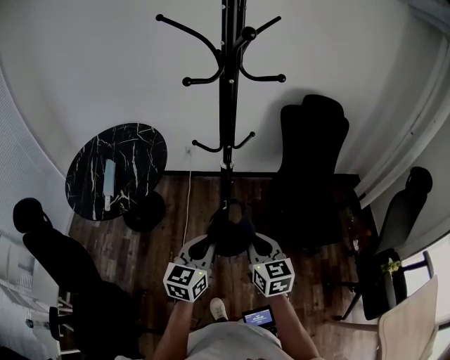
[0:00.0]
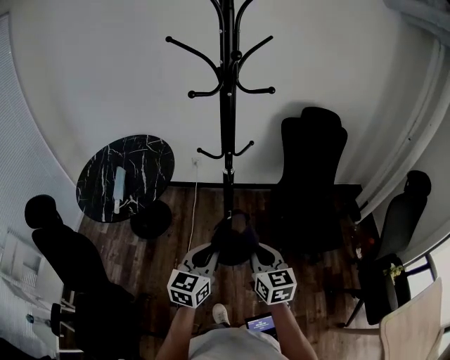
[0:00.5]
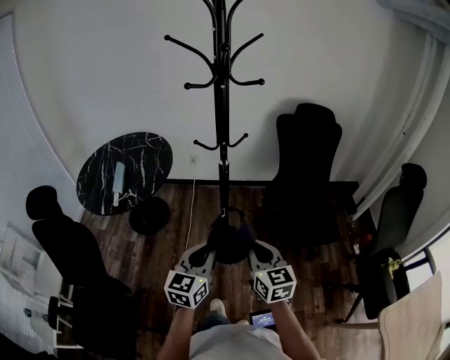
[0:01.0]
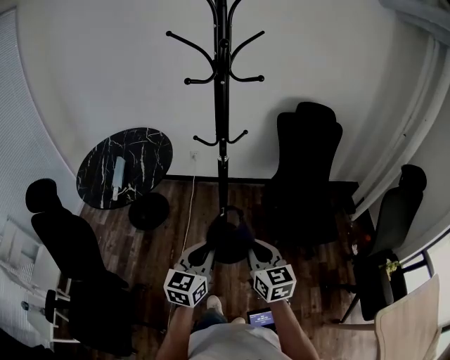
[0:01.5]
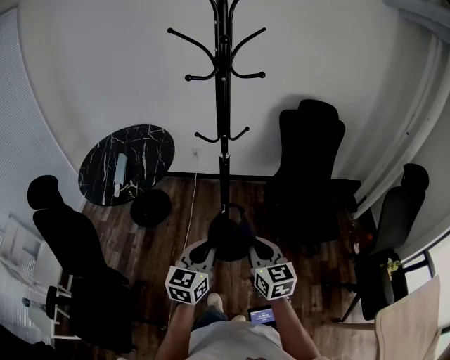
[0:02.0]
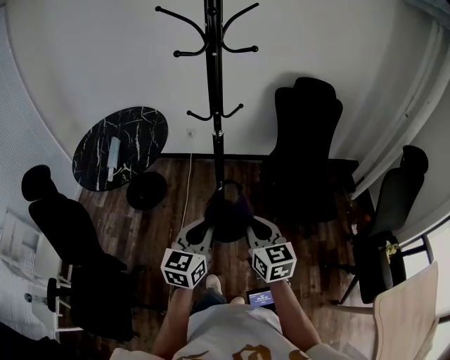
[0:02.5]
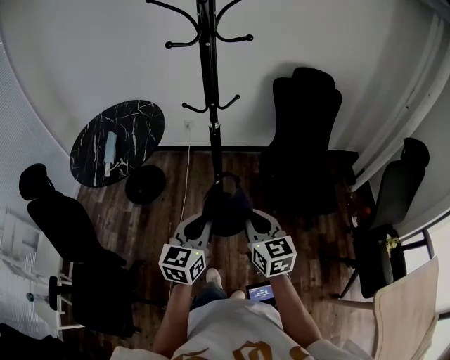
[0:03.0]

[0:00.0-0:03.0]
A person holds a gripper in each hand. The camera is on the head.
0:00.0 to 0:01.5: Both grippers travel together backward, roughly 10 cm.
0:01.5 to 0:03.0: The grippers stay close to where they were, moving slightly.

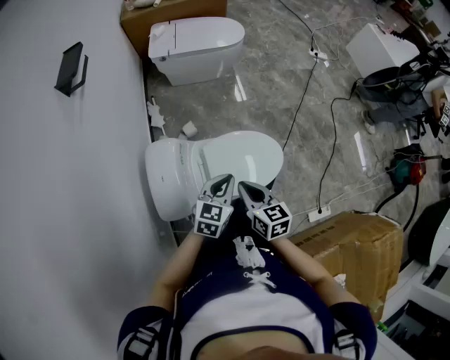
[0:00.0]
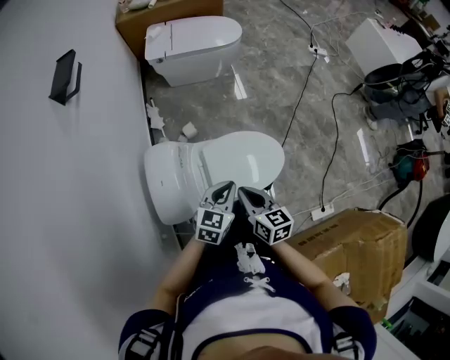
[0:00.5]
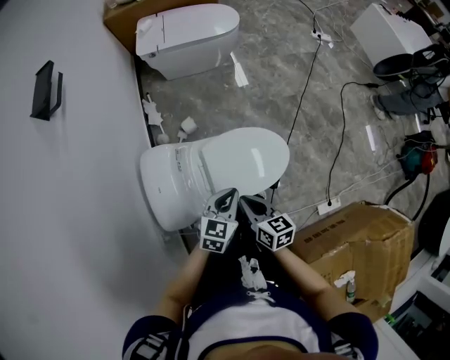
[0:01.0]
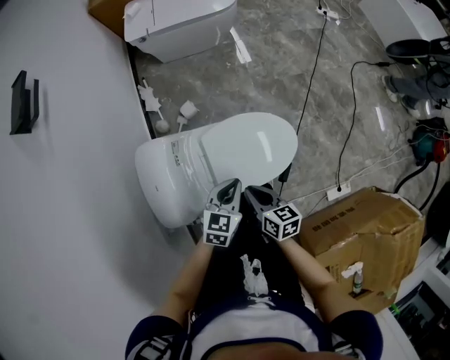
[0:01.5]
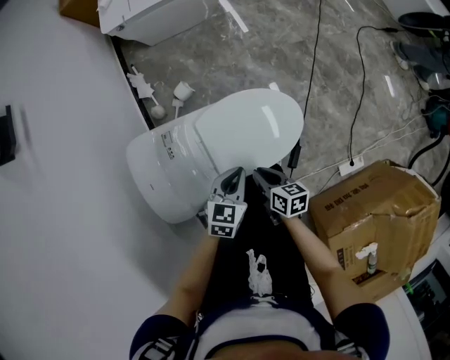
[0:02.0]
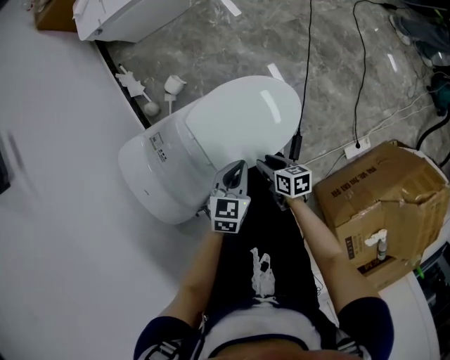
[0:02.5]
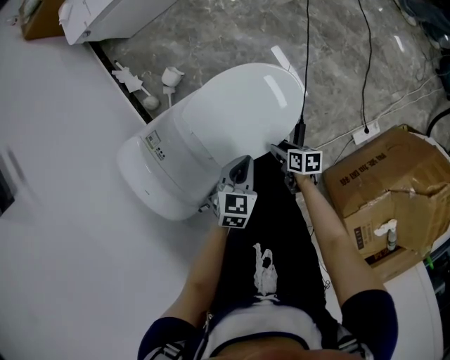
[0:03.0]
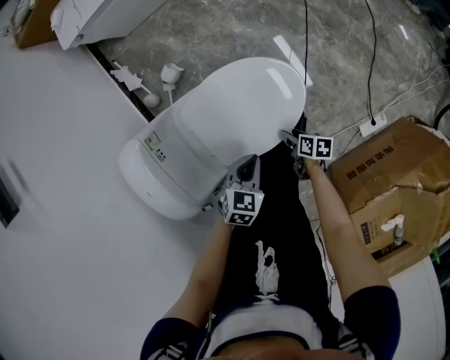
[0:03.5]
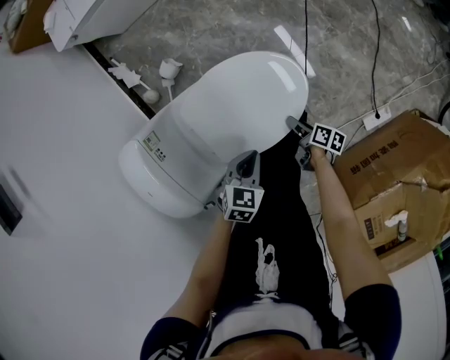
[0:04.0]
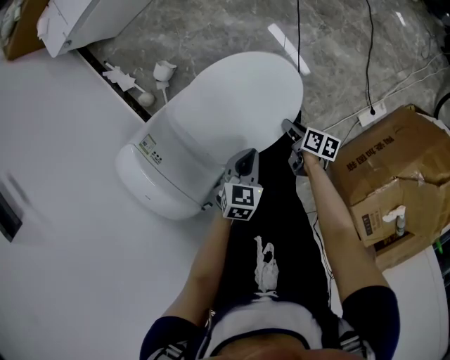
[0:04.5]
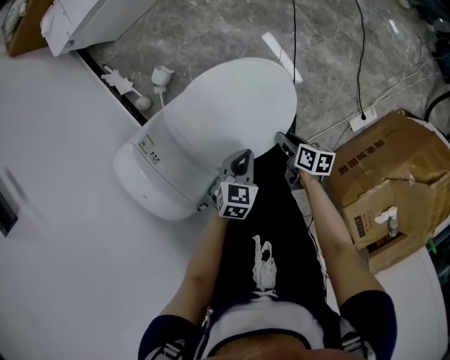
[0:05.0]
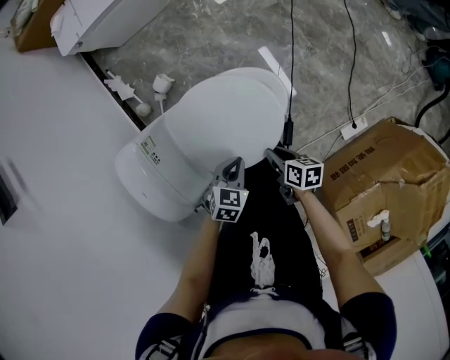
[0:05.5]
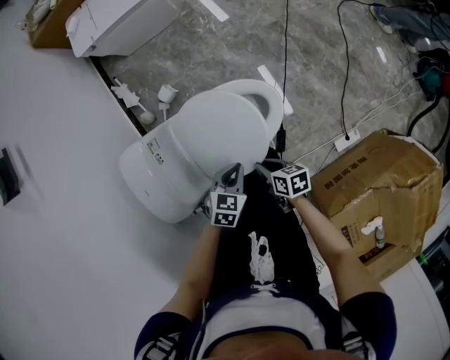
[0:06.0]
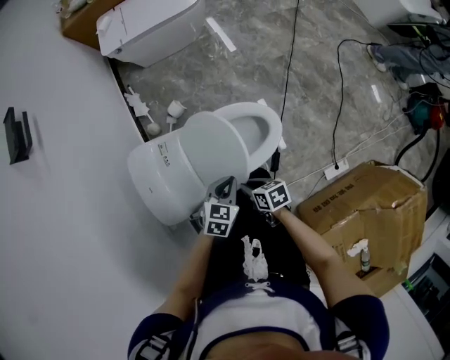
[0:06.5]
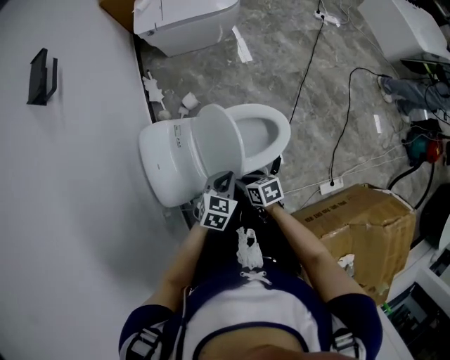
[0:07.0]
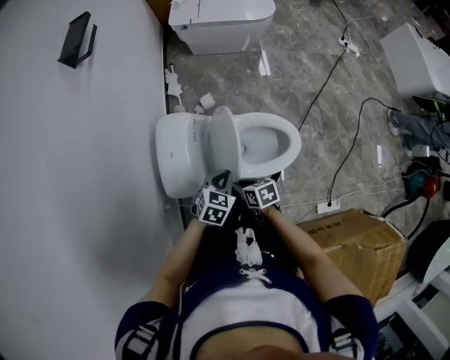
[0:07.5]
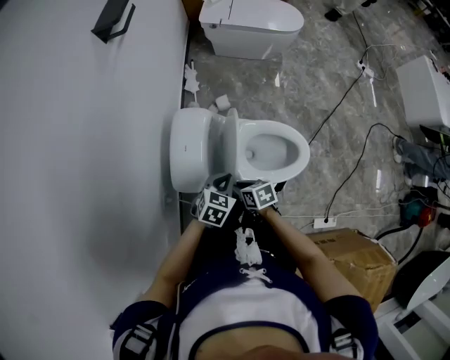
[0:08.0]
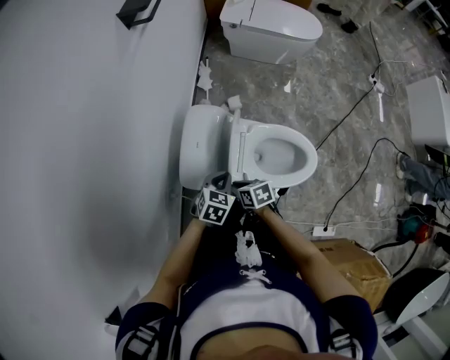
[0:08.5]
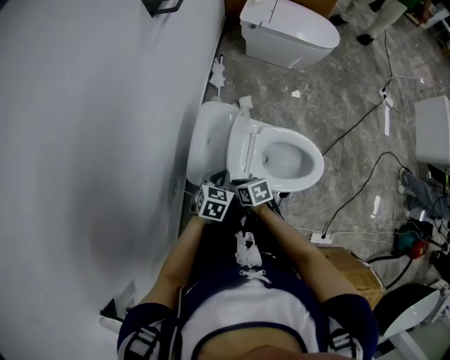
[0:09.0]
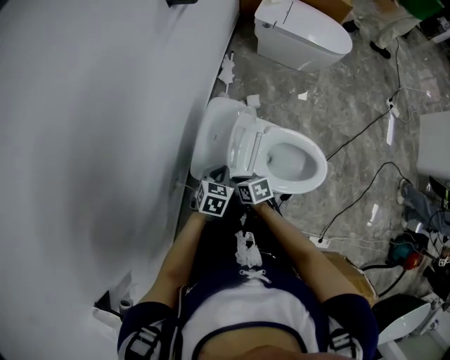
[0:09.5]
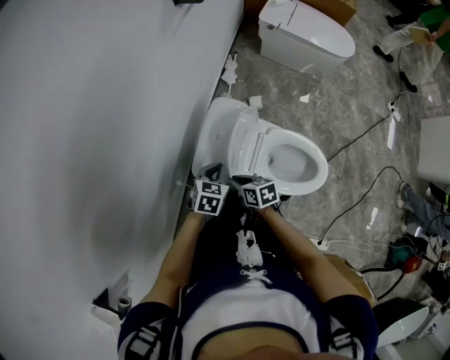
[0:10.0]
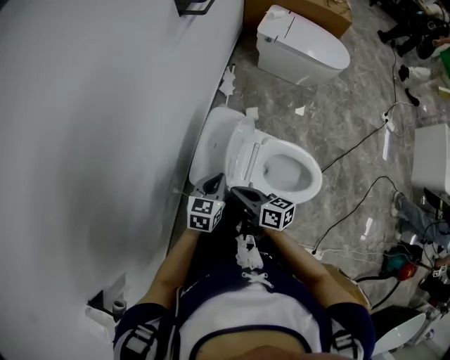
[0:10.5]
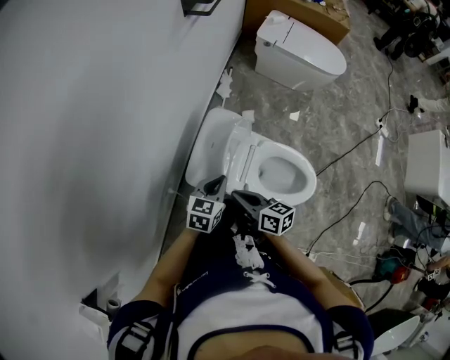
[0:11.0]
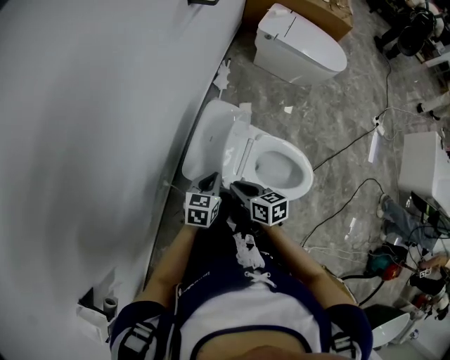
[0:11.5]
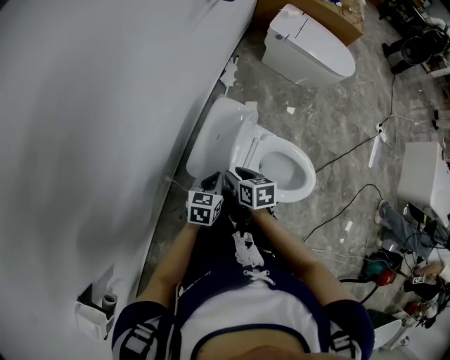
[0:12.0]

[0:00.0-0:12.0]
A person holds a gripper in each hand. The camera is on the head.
0:00.0 to 0:02.0: The two grippers go roughly 20 cm downward. The right gripper changes its angle by some 30 degrees.
0:02.0 to 0:04.0: The right gripper goes some 25 cm downward and to the right, rolls clockwise, seen from behind, by approximately 40 degrees, and opens. Meanwhile the left gripper heads downward and to the right, covering about 15 cm, and swivels about 20 degrees.
0:04.0 to 0:06.0: The right gripper goes roughly 20 cm upward and to the left, changes its angle by approximately 40 degrees, and closes up; the left gripper heads upward, covering roughly 10 cm.
0:06.0 to 0:08.0: The left gripper changes place by some 20 cm, and rotates some 20 degrees; the right gripper changes place by some 25 cm, and swivels roughly 40 degrees.
0:08.0 to 0:10.0: The grippers both shift to the left and forward by approximately 10 cm. The left gripper turns by approximately 20 degrees.

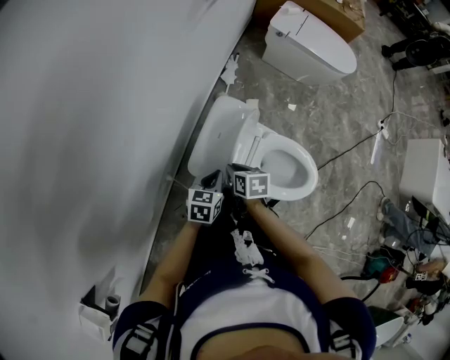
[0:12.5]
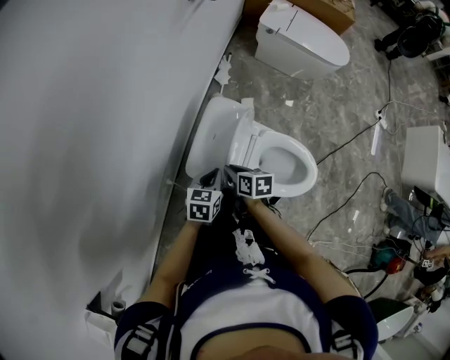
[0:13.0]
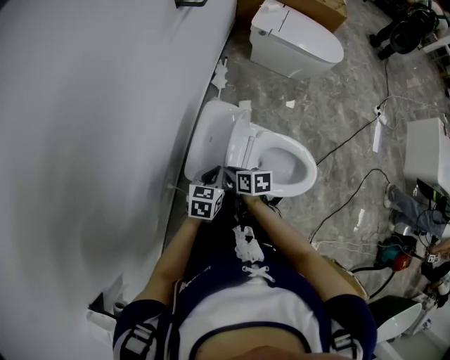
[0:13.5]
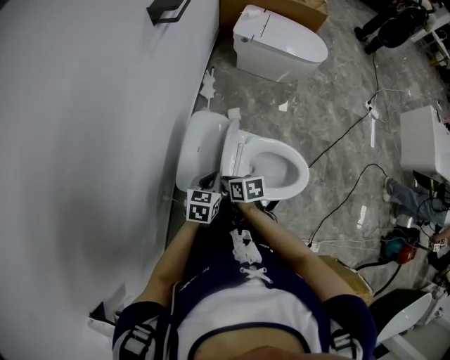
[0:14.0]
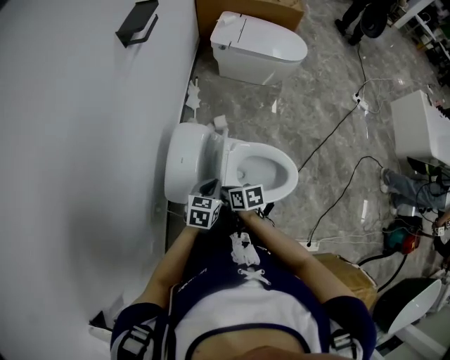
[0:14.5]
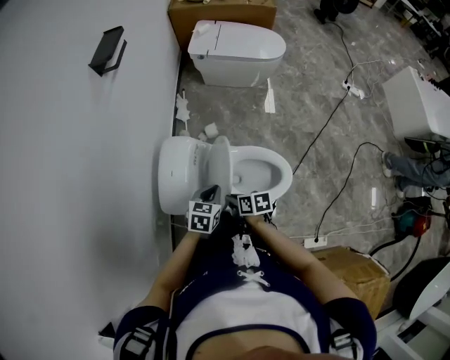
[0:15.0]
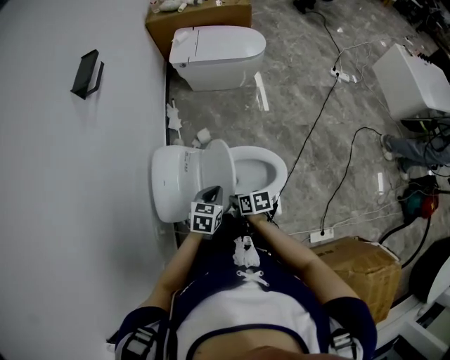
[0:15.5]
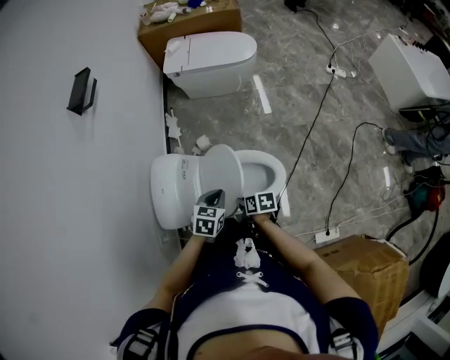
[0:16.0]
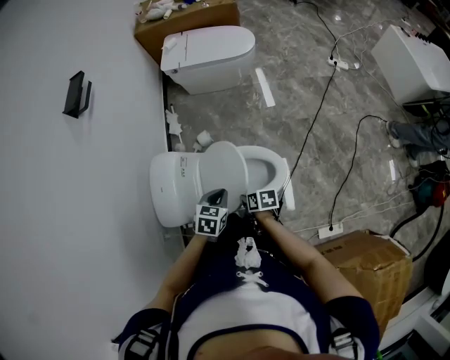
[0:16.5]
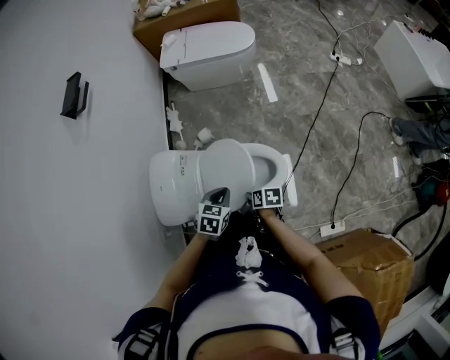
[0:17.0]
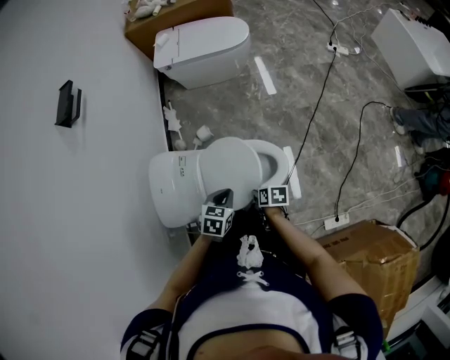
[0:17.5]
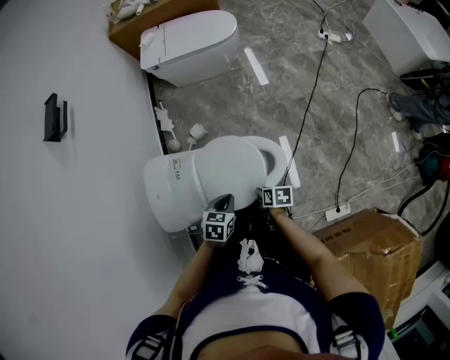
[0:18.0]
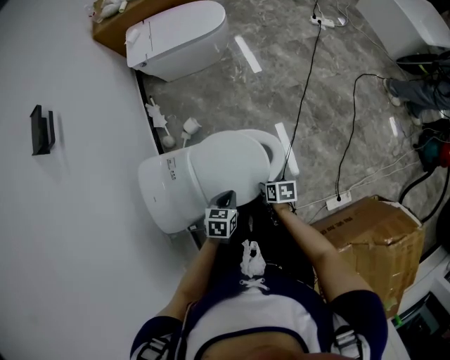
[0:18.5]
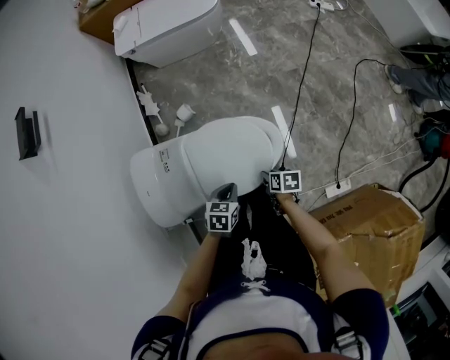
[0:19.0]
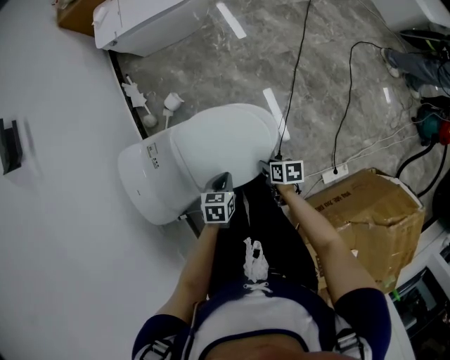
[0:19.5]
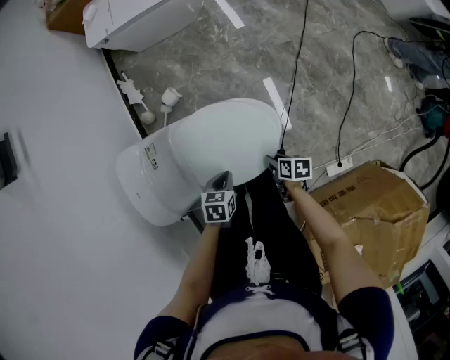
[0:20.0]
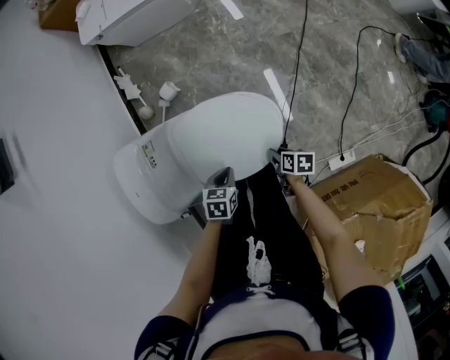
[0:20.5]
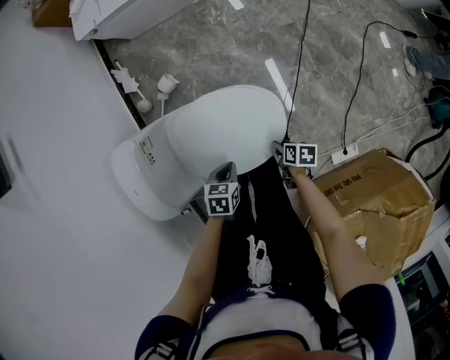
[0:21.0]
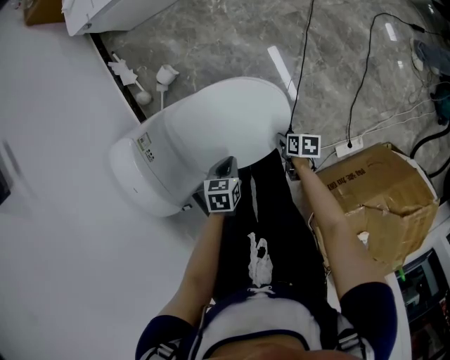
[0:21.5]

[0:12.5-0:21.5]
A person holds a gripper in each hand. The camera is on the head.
0:12.5 to 0:14.5: The right gripper is displaced to the right and backward by approximately 10 cm. The left gripper goes some 15 cm to the right.
0:14.5 to 0:17.0: Both grippers move to the right, about 20 cm. The right gripper changes its angle by some 30 degrees.
0:17.0 to 0:19.5: The right gripper is displaced downward and to the right by some 15 cm. Meanwhile the left gripper shifts about 15 cm downward.
0:19.5 to 0:21.5: The right gripper goes roughly 10 cm downward and to the right; the left gripper is displaced downward by roughly 5 cm.

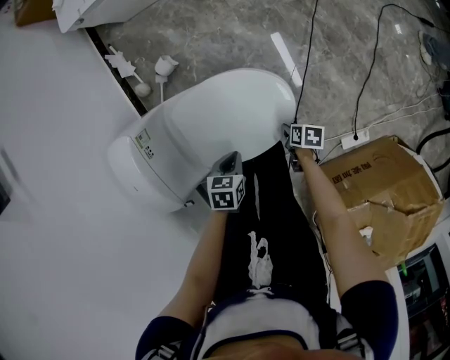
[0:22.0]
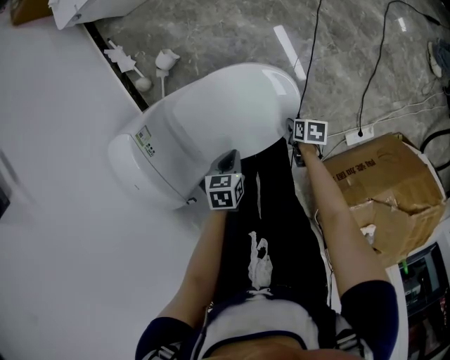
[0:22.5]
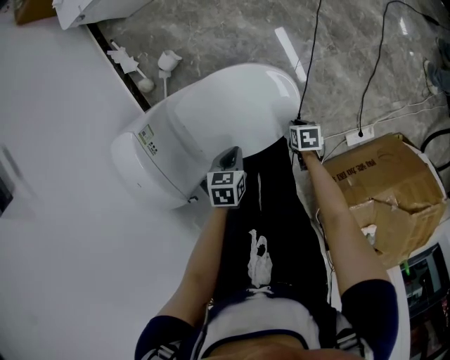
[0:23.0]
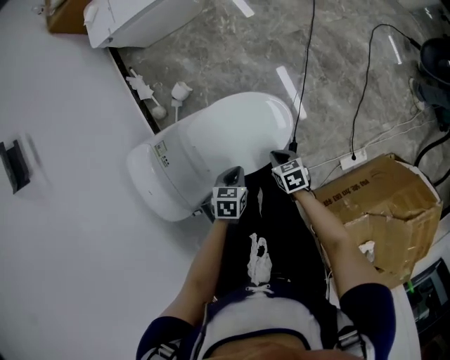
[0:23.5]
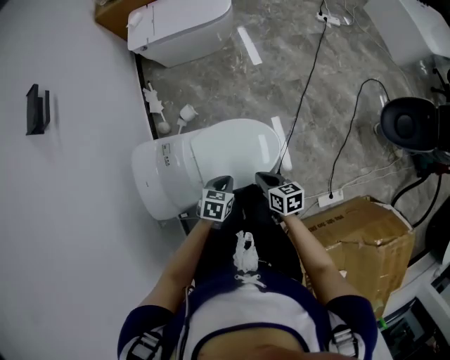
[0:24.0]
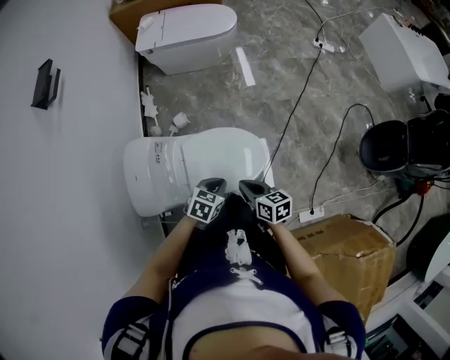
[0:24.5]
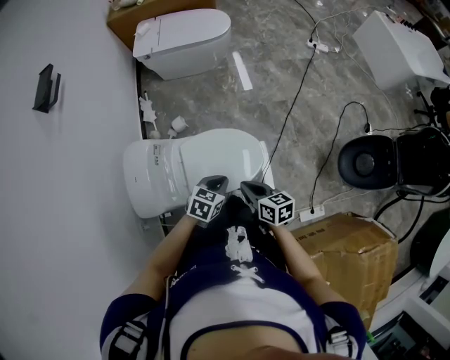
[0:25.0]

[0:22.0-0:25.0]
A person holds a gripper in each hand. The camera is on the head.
0:22.0 to 0:23.5: The left gripper moves upward, roughly 5 cm; the right gripper is displaced upward by approximately 15 cm, swivels roughly 30 degrees, and closes.
0:23.5 to 0:25.0: The left gripper heads upward, covering about 15 cm, and changes its angle by approximately 20 degrees. Meanwhile the right gripper moves upward, some 25 cm, and rotates some 30 degrees.
